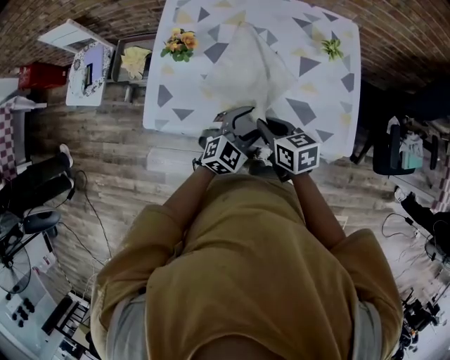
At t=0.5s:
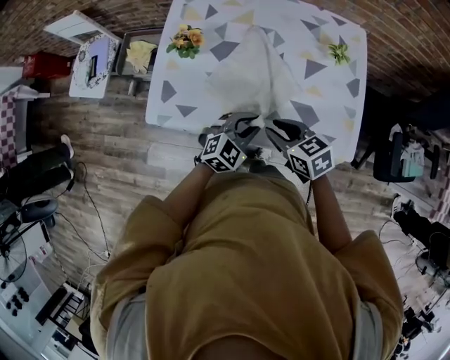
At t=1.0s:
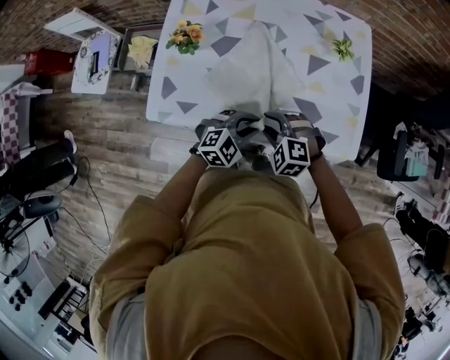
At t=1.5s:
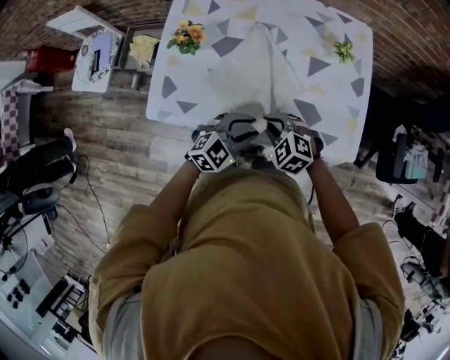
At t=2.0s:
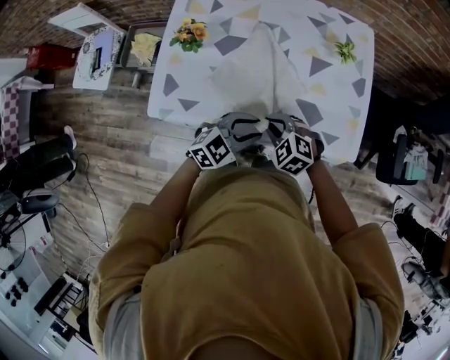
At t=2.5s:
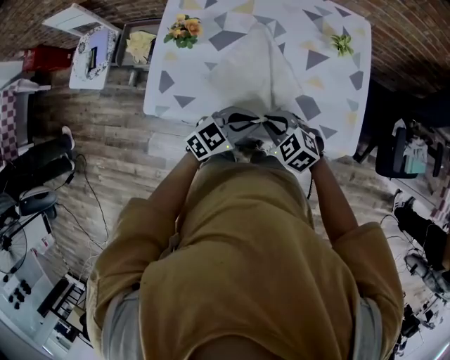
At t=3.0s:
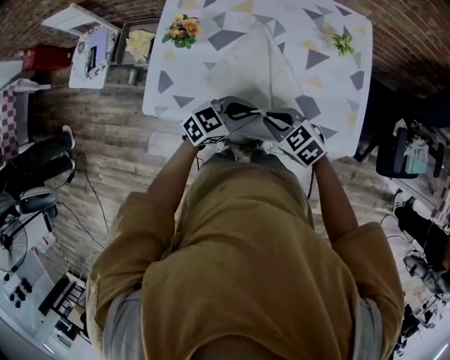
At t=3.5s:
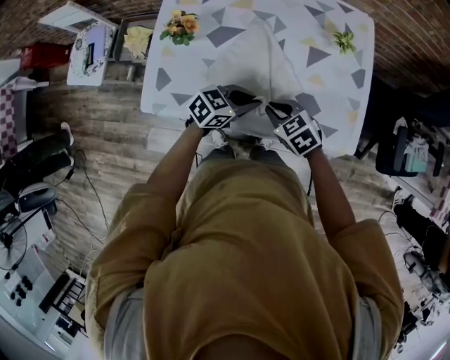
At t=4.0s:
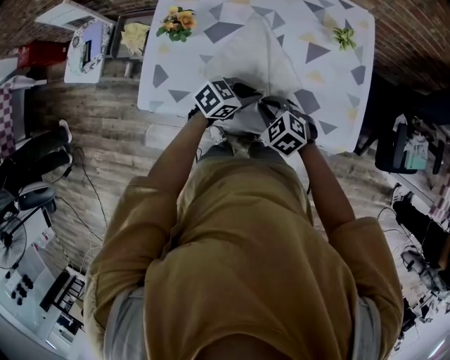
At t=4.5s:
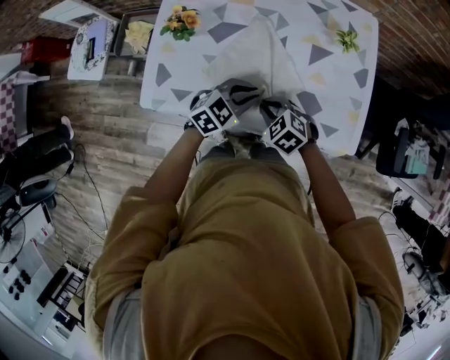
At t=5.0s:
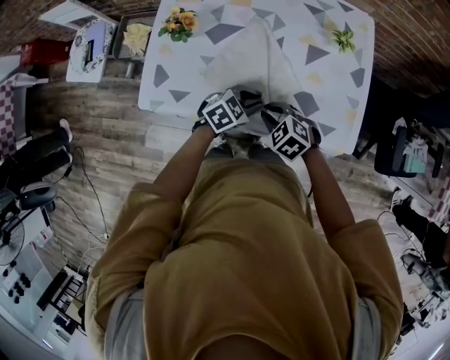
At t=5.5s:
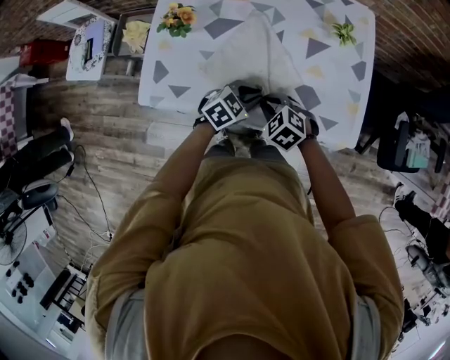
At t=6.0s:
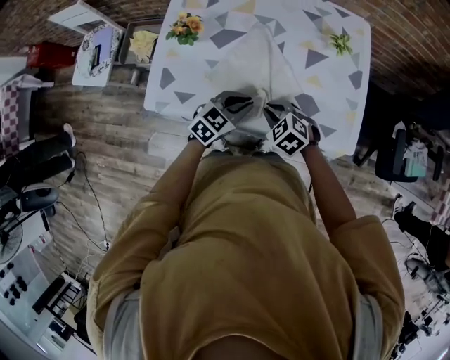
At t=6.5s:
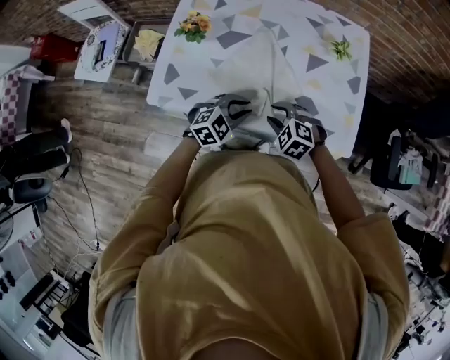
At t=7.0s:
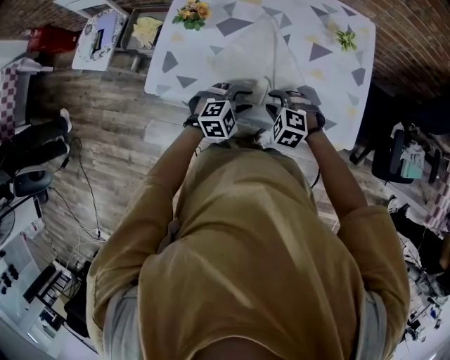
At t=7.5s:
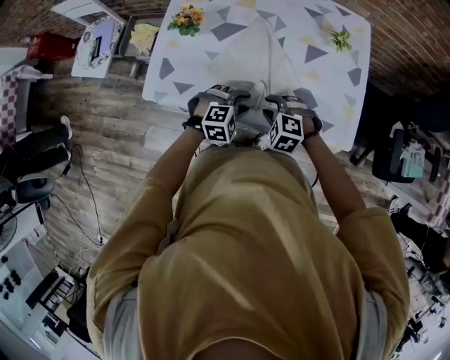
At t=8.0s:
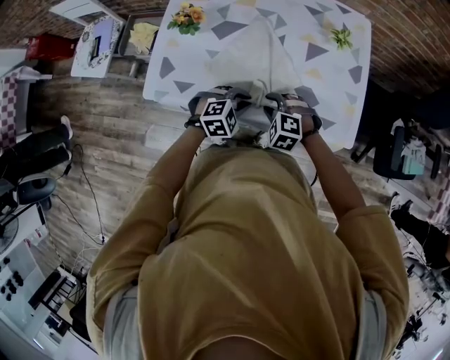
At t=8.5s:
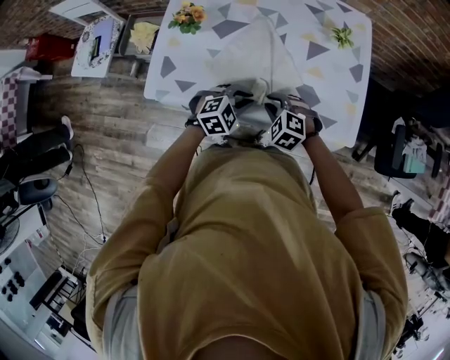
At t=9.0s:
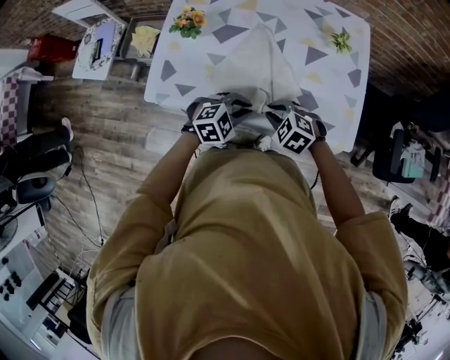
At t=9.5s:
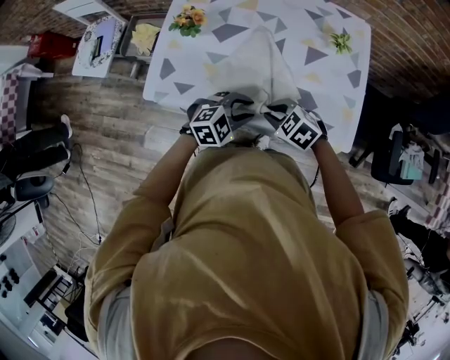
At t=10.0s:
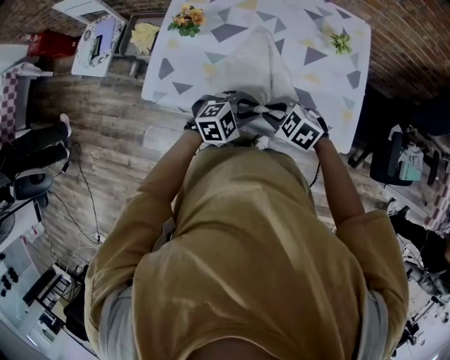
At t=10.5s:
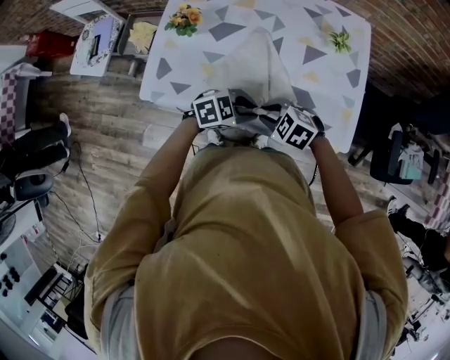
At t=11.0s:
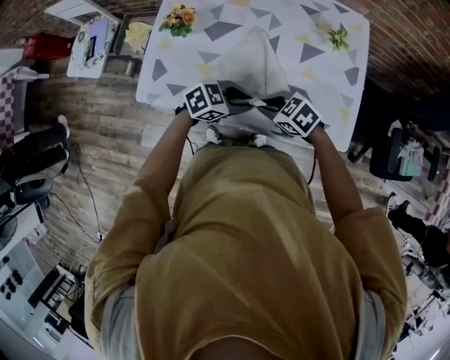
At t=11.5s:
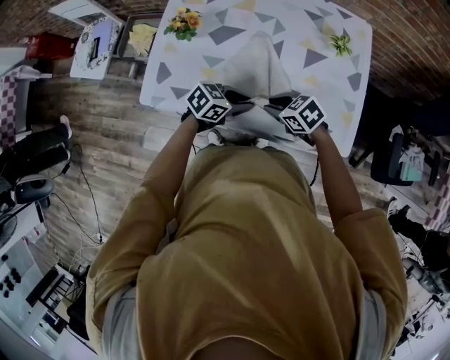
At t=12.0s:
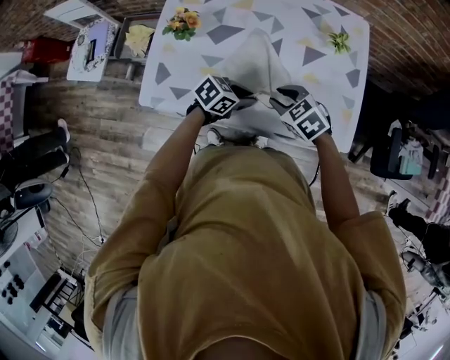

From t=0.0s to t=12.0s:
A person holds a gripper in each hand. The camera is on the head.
From t=0.0s to t=2.0s: The right gripper goes roughly 5 cm downward, and rolls counterclockwise, seen from behind, by approximately 60 degrees.
From t=2.0s to t=4.0s: The left gripper changes place by some 10 cm, and rotates roughly 30 degrees.
From t=4.0s to t=6.0s: The left gripper swings up and down, about 5 cm each way, with 2 reversals, and rotates roughly 20 degrees.
From t=6.0s to t=8.0s: The left gripper moves about 5 cm, and swivels roughly 30 degrees. Meanwhile the right gripper swivels about 30 degrees.
From t=8.0s to t=10.0s: The right gripper is displaced upward by some 5 cm, and changes its angle by roughly 30 degrees. The left gripper moves approximately 5 cm.
From t=10.0s to t=12.0s: The left gripper ends up some 5 cm from where it was, and rotates roughly 40 degrees. Meanwhile the right gripper moves about 5 cm.

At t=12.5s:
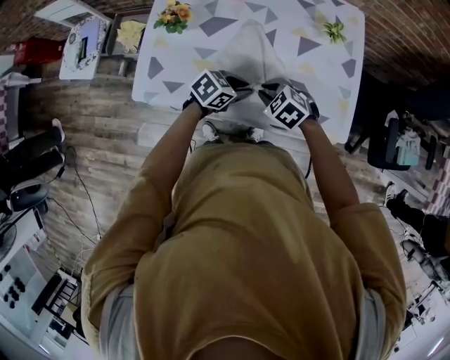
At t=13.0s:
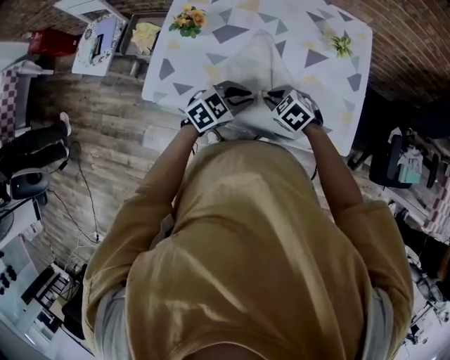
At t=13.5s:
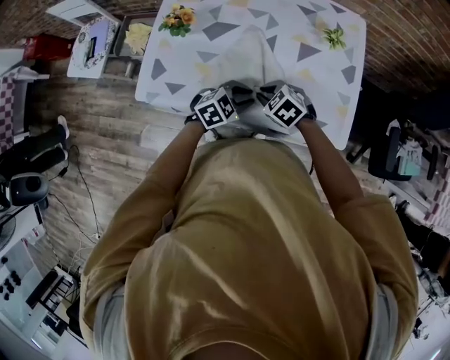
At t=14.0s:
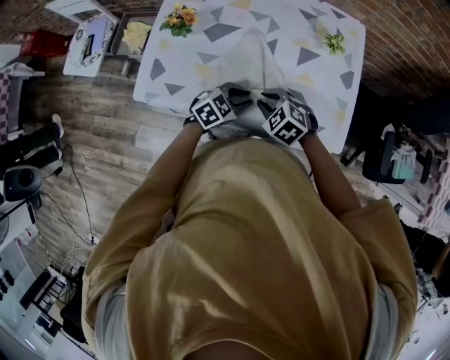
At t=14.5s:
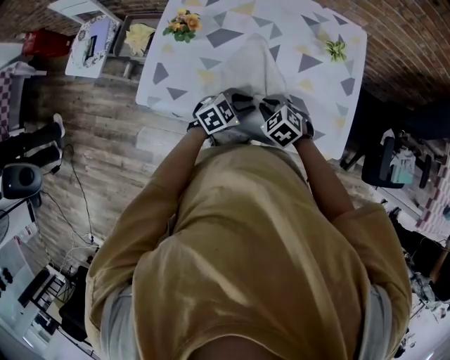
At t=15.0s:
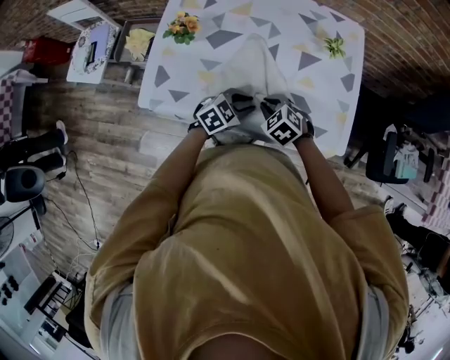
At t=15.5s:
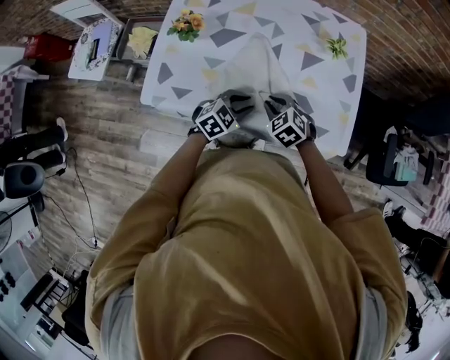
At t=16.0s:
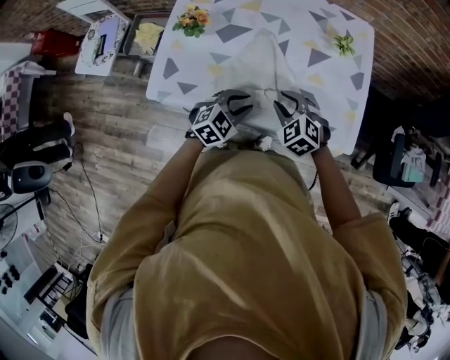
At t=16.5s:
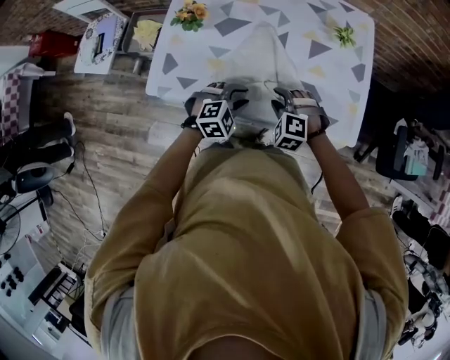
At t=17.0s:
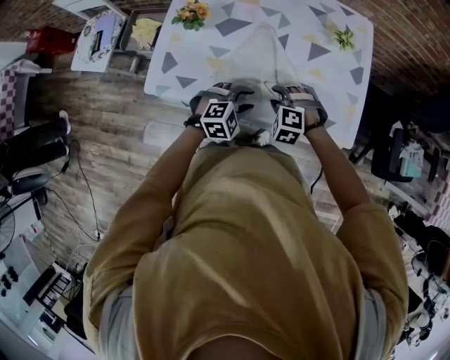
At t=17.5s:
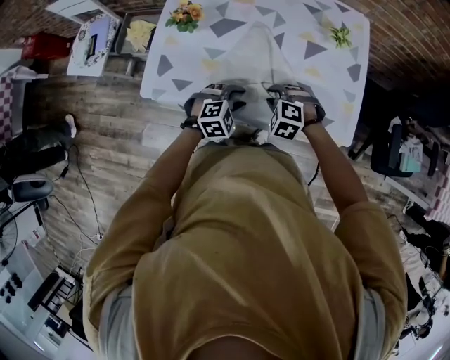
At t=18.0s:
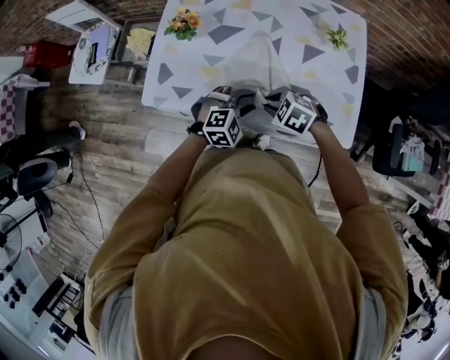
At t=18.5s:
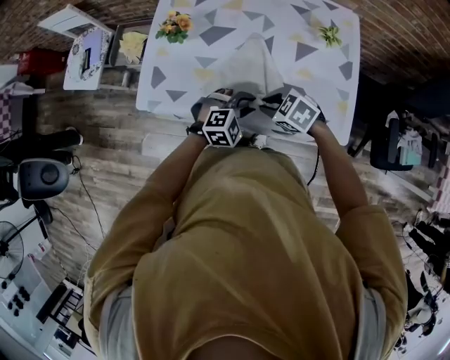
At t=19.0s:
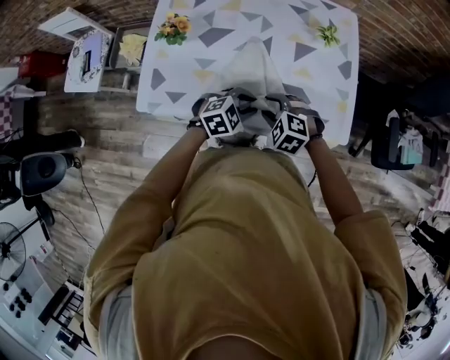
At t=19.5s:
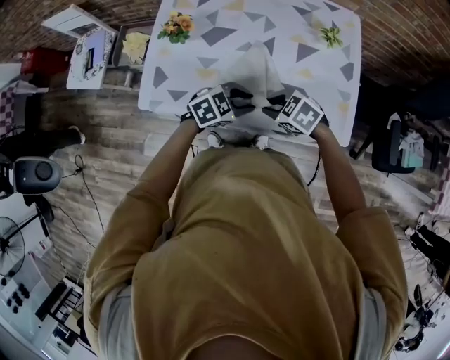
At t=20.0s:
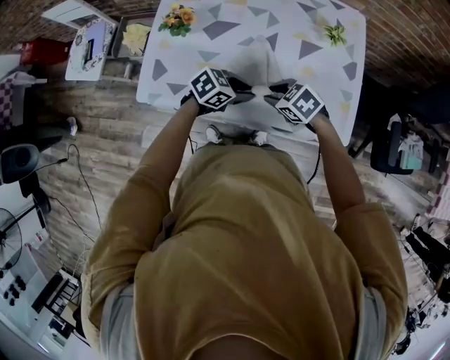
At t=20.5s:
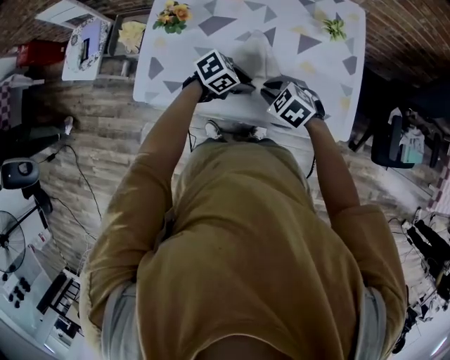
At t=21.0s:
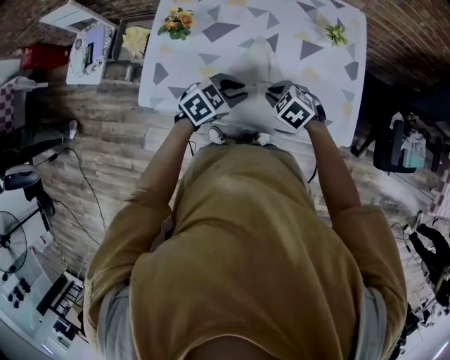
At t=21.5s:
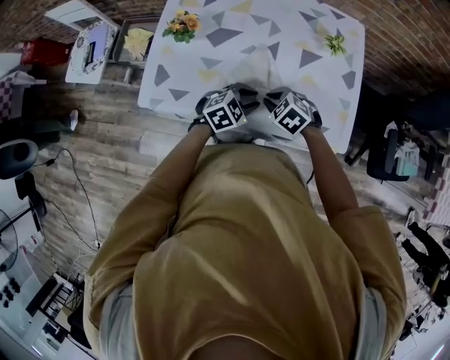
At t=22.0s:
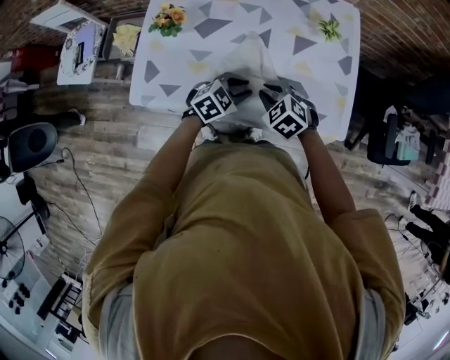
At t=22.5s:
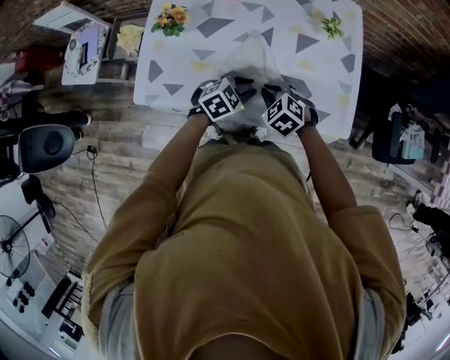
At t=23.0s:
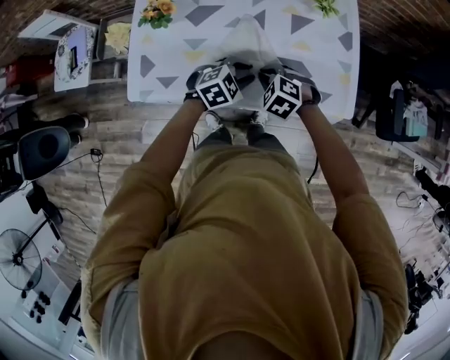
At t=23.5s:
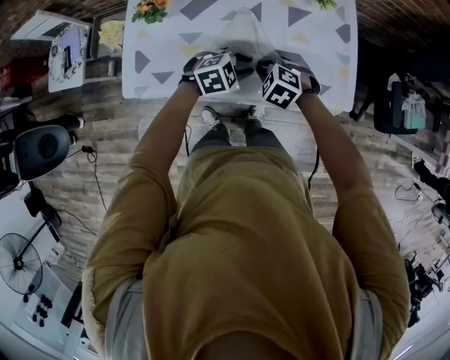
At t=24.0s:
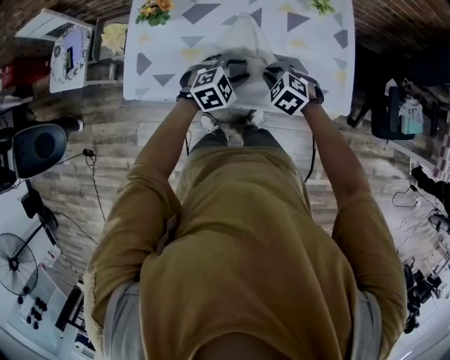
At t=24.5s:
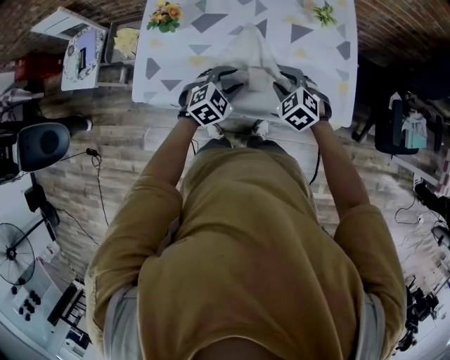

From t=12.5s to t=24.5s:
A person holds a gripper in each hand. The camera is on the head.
From t=14.5s to t=16.5s: The right gripper changes its angle by some 30 degrees, while the left gripper ends up approximately 5 cm from where it was, and changes its angle by some 30 degrees.
From t=16.5s to t=18.5s: The right gripper rotates some 40 degrees. The left gripper ends up about 5 cm from where it was.
From t=18.5s to t=20.5s: The left gripper twists approximately 40 degrees counterclockwise, seen from behind.
From t=20.5s to t=22.5s: The left gripper changes its angle by roughly 30 degrees.
From t=22.5s to t=24.5s: The grippers make only small movements.

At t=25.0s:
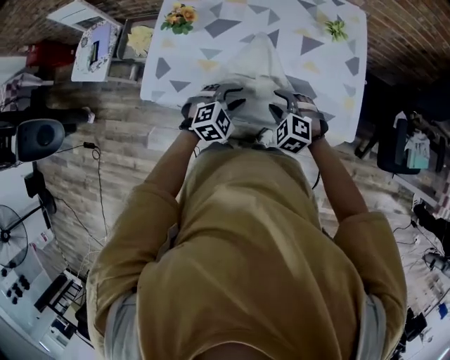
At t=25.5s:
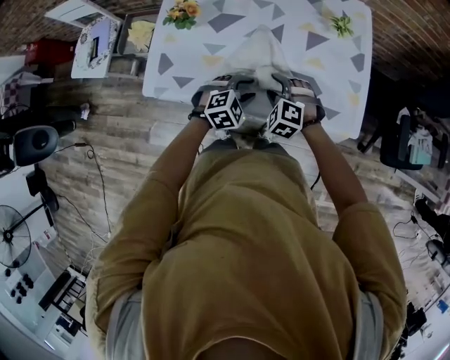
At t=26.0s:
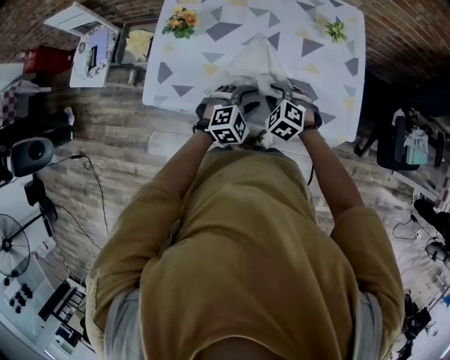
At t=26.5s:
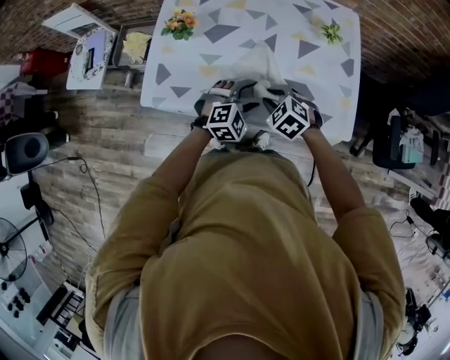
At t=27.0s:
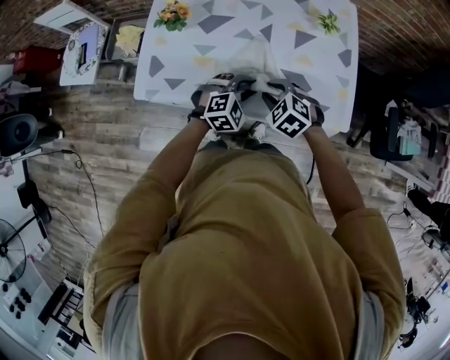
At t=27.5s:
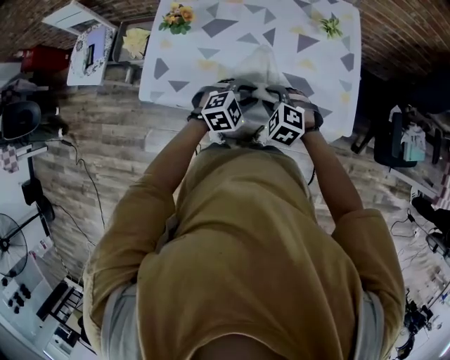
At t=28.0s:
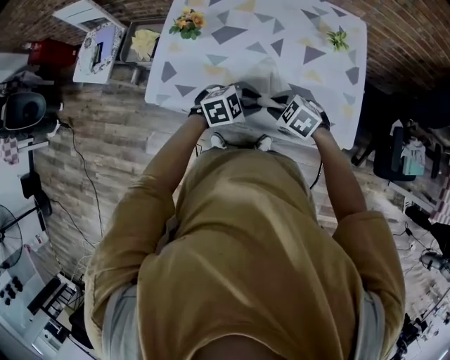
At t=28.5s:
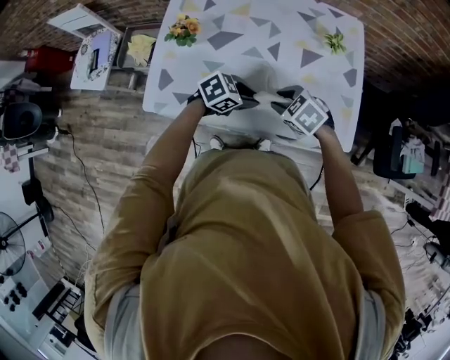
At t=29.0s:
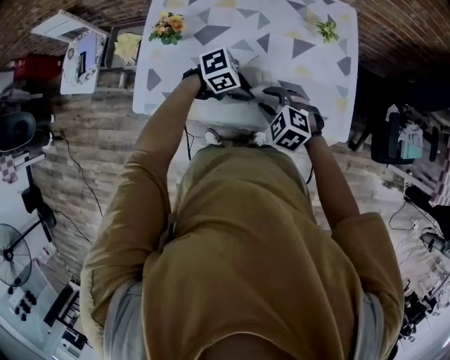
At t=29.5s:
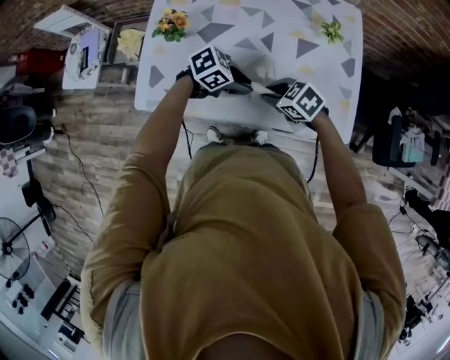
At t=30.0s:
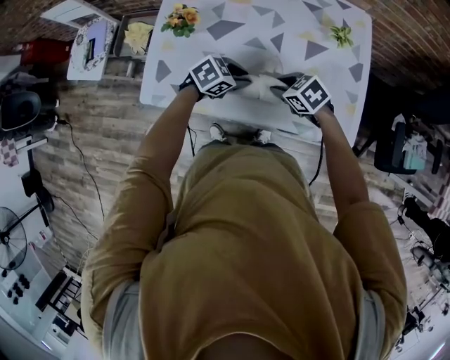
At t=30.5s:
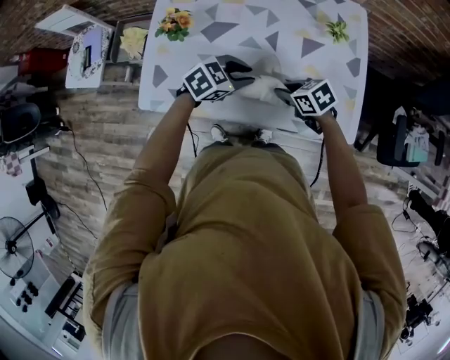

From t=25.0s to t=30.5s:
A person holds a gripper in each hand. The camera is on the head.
From t=27.0s to t=28.5s: The left gripper turns by approximately 40 degrees.
From t=28.5s to t=30.5s: The right gripper changes its angle by some 30 degrees; the left gripper changes place by about 5 cm.
